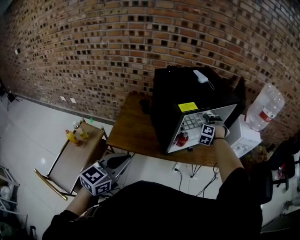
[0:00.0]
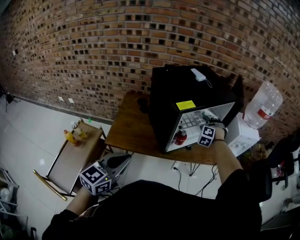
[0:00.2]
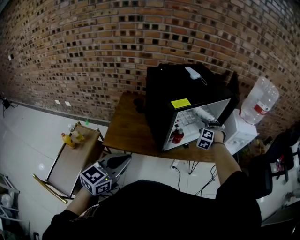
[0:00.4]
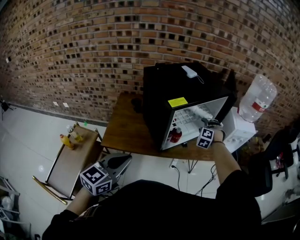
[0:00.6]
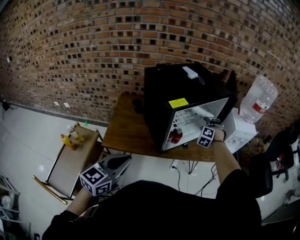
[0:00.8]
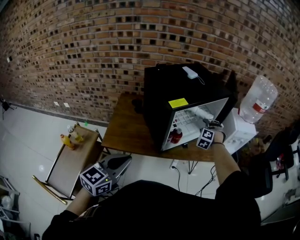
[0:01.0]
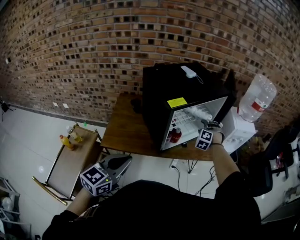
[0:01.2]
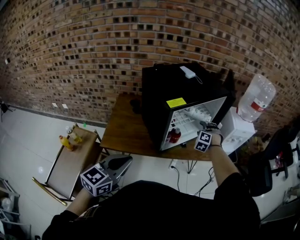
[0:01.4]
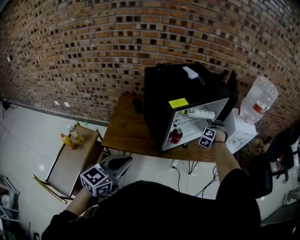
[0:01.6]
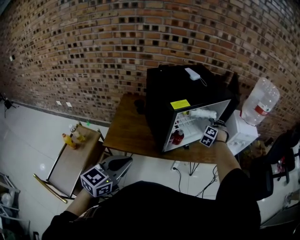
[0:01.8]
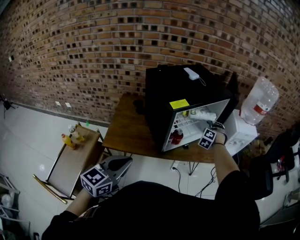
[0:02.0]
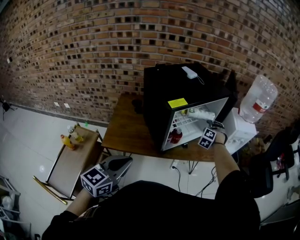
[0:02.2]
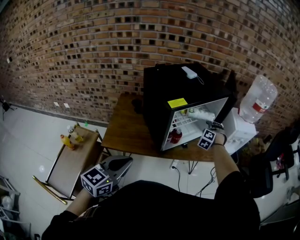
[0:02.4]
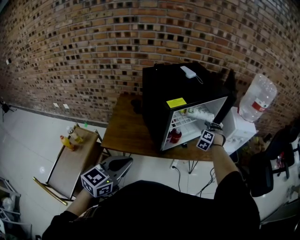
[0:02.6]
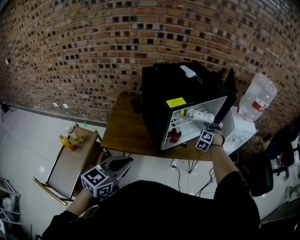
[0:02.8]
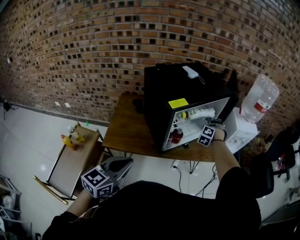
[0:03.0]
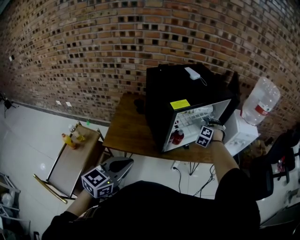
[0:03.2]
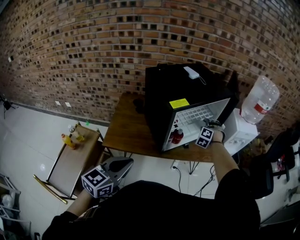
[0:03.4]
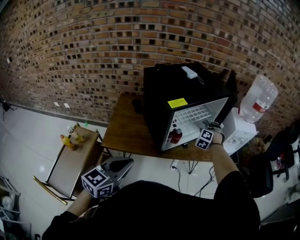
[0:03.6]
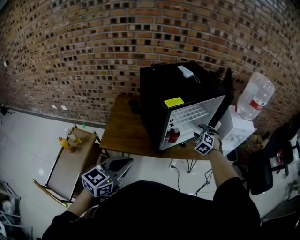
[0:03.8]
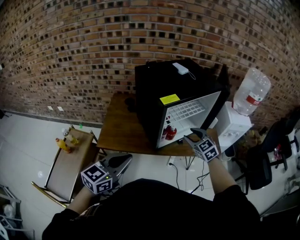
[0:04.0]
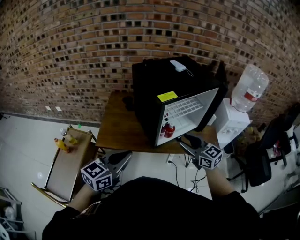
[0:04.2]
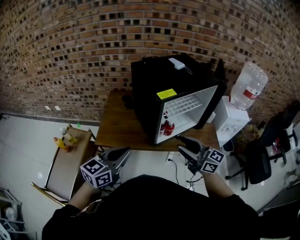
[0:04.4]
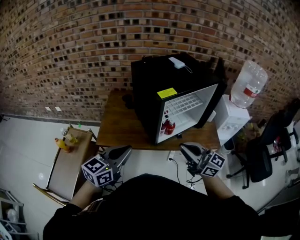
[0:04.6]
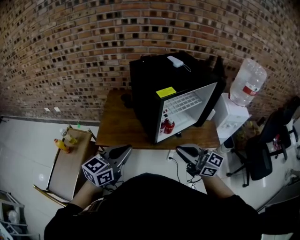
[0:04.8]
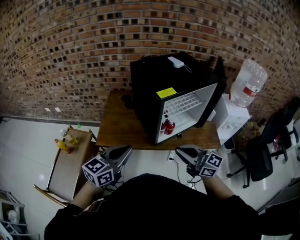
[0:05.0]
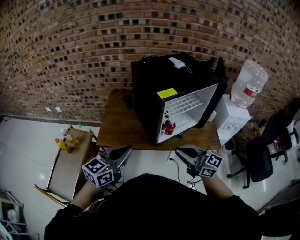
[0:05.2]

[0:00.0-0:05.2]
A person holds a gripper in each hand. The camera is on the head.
0:00.0 to 0:01.8: The right gripper moves to the right, approximately 10 cm.
0:01.8 to 0:03.4: There are only small adjustments of the grippers.
0:03.4 to 0:05.2: The right gripper moves about 35 cm, tilts its fingers roughly 40 degrees upward, and closes its fingers.

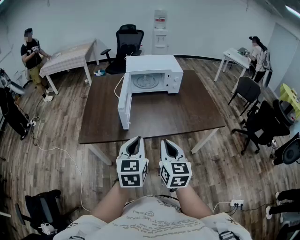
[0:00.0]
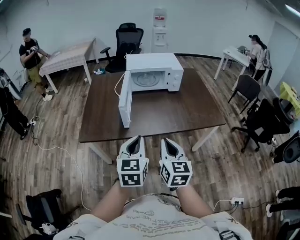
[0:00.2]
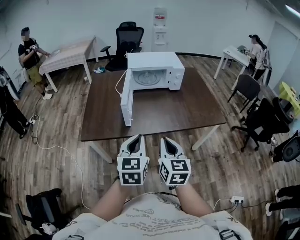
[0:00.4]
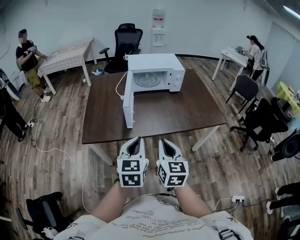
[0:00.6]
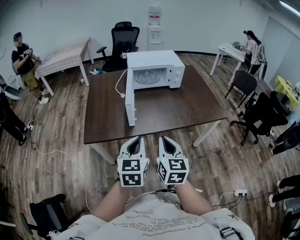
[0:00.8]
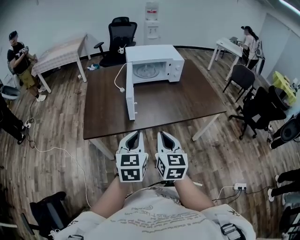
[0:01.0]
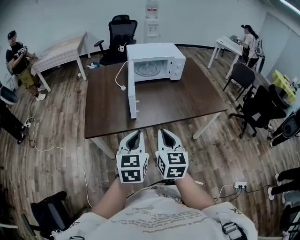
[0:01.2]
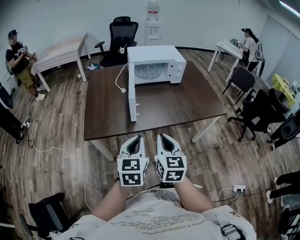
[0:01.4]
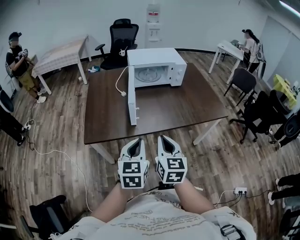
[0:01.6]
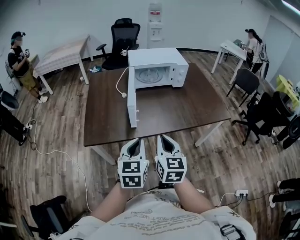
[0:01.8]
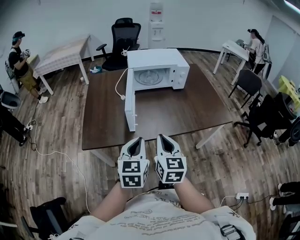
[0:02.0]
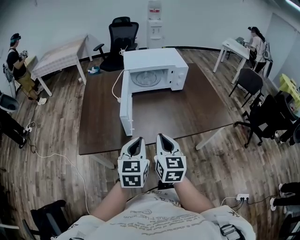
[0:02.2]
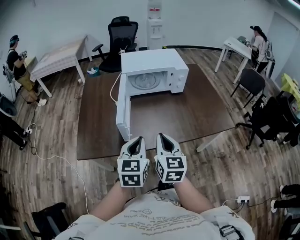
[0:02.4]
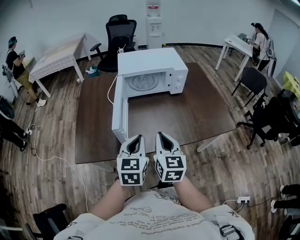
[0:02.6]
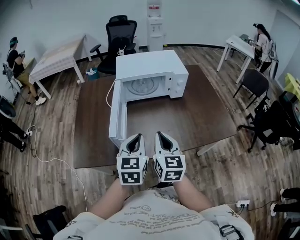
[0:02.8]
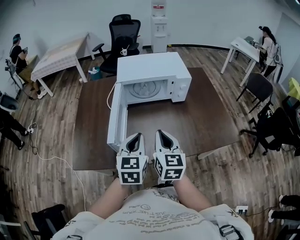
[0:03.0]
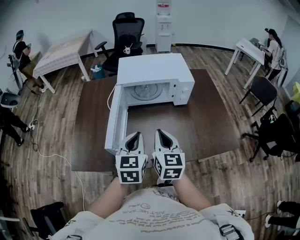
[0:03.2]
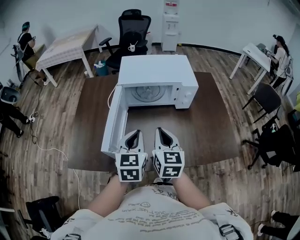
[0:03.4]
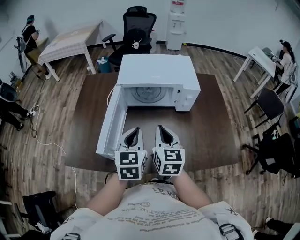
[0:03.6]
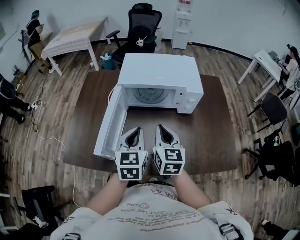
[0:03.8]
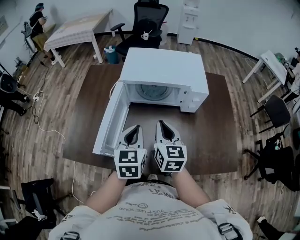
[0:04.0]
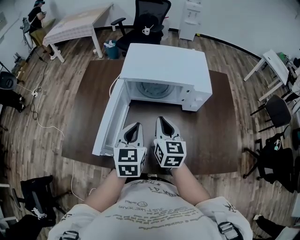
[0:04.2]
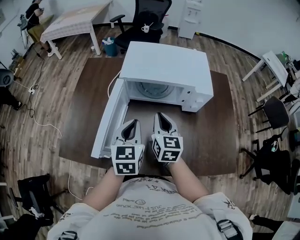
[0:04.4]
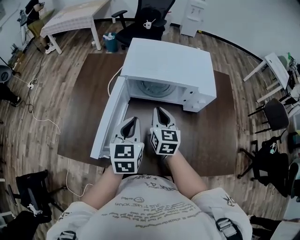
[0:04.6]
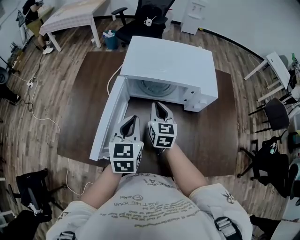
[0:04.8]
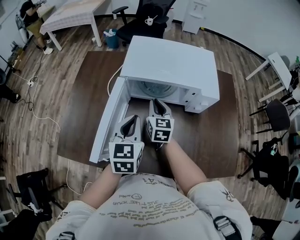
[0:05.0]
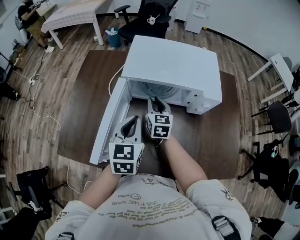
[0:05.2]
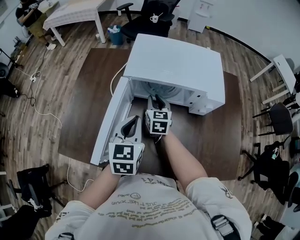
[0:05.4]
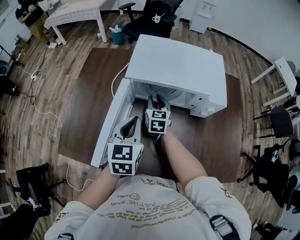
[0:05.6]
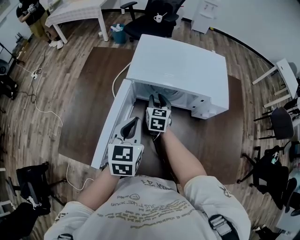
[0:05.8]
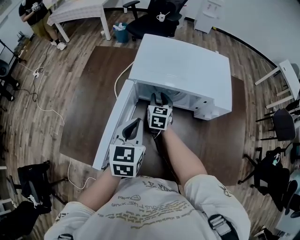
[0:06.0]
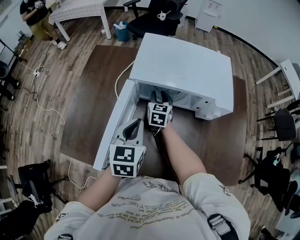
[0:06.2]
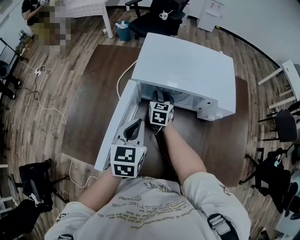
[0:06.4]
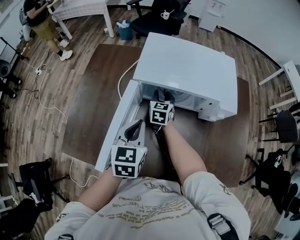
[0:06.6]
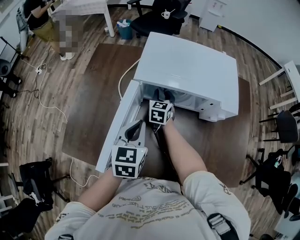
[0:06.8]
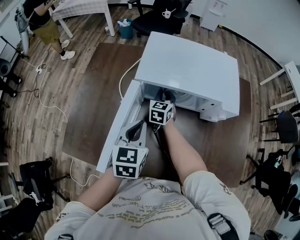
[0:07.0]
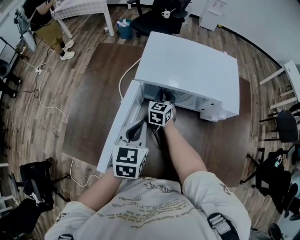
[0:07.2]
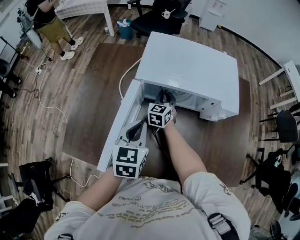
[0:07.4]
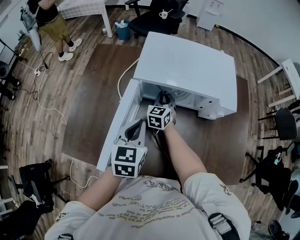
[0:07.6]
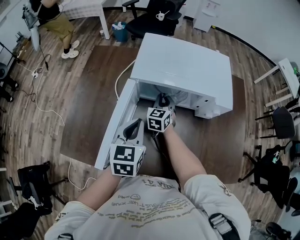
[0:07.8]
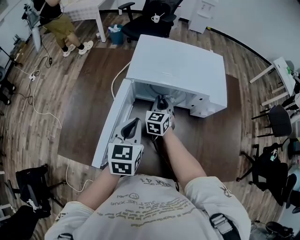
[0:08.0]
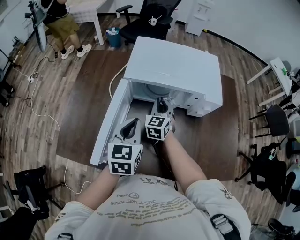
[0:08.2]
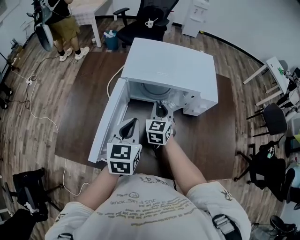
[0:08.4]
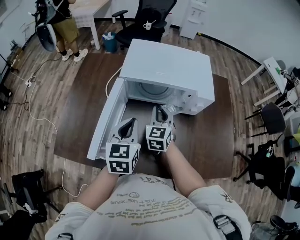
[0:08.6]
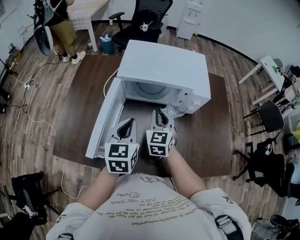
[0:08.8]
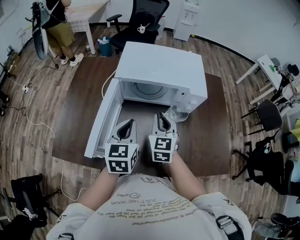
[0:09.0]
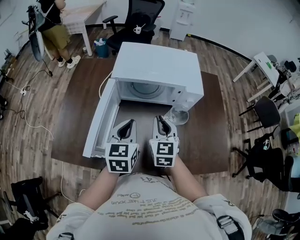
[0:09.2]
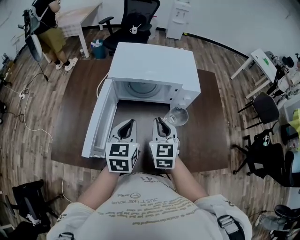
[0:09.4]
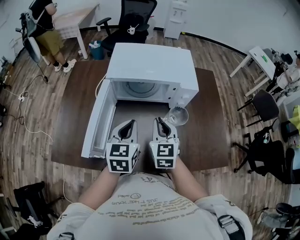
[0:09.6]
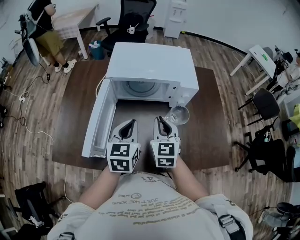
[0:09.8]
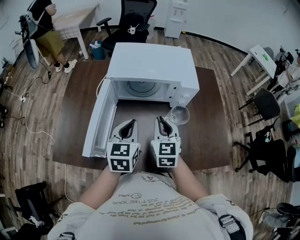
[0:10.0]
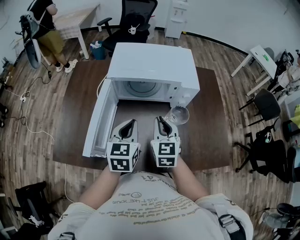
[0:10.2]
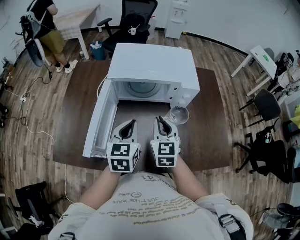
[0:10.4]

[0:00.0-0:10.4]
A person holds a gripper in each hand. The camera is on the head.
0:00.0 to 0:01.4: Both grippers travel together to the left, roughly 10 cm.
0:01.4 to 0:03.0: Both grippers move forward, some 30 cm.
0:03.0 to 0:04.4: The two grippers go approximately 20 cm forward.
0:04.4 to 0:06.0: The right gripper is displaced forward and downward by approximately 20 cm, and opens up, while the left gripper moves forward, some 5 cm.
0:06.0 to 0:07.4: The right gripper closes.
0:07.4 to 0:09.0: The left gripper heads to the right and backward, covering about 5 cm, while the right gripper is displaced backward, upward and to the right by about 25 cm.
0:09.0 to 0:10.4: The grippers move only a little.

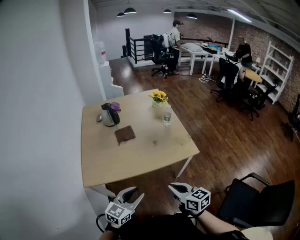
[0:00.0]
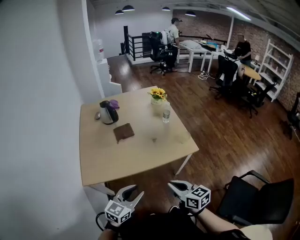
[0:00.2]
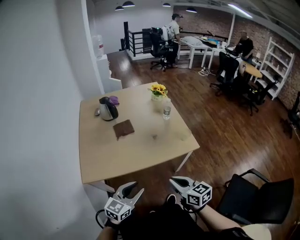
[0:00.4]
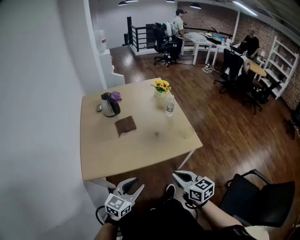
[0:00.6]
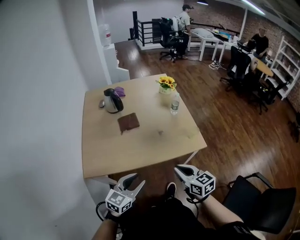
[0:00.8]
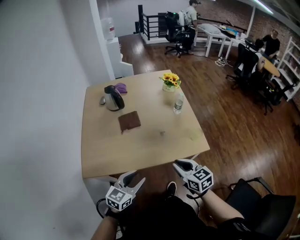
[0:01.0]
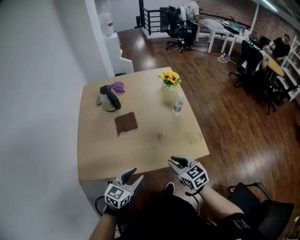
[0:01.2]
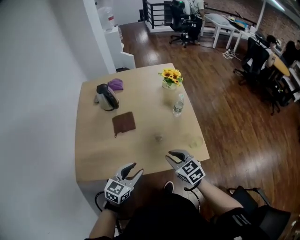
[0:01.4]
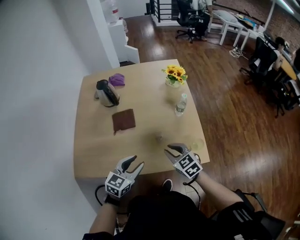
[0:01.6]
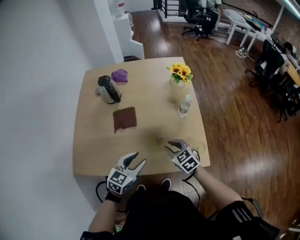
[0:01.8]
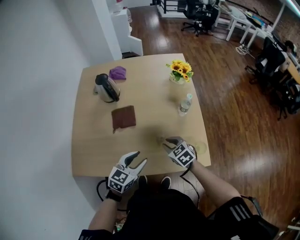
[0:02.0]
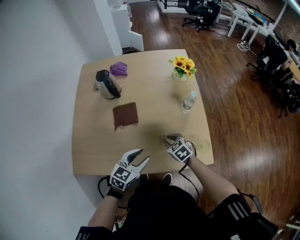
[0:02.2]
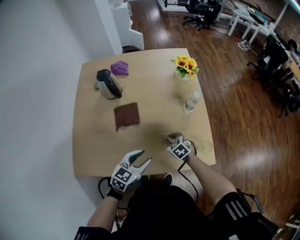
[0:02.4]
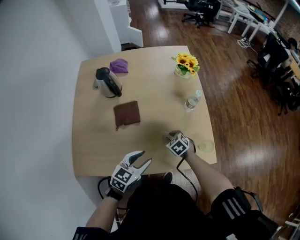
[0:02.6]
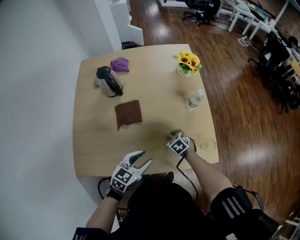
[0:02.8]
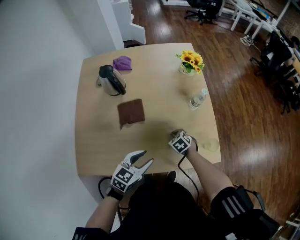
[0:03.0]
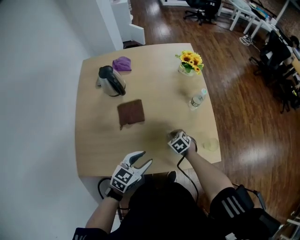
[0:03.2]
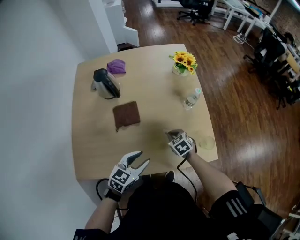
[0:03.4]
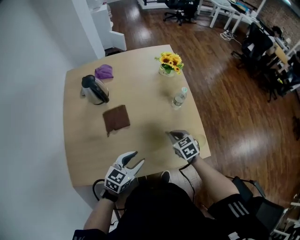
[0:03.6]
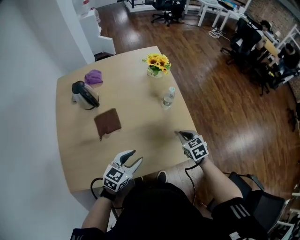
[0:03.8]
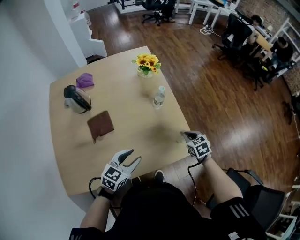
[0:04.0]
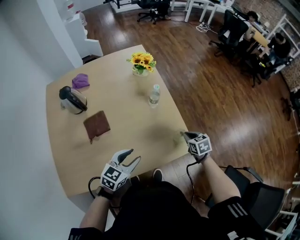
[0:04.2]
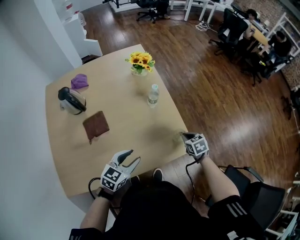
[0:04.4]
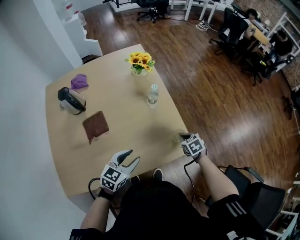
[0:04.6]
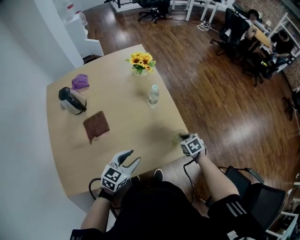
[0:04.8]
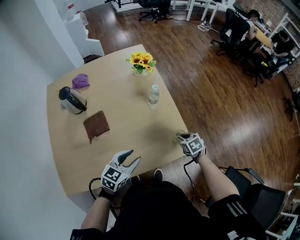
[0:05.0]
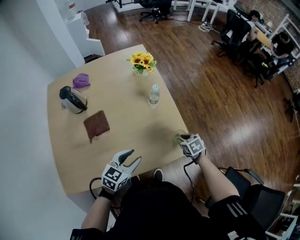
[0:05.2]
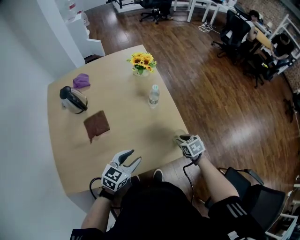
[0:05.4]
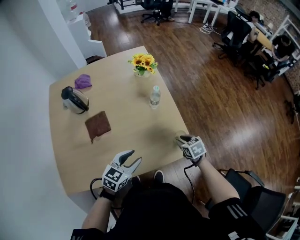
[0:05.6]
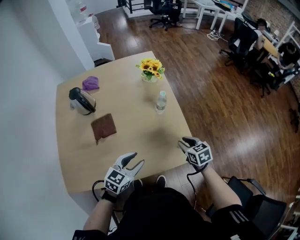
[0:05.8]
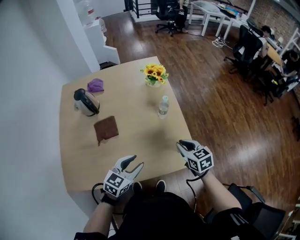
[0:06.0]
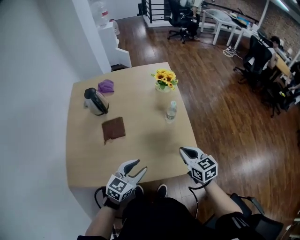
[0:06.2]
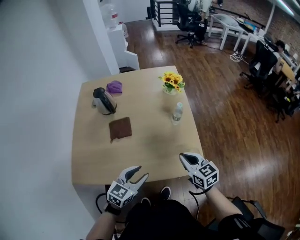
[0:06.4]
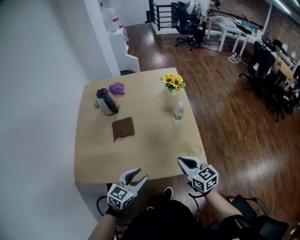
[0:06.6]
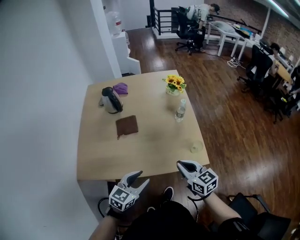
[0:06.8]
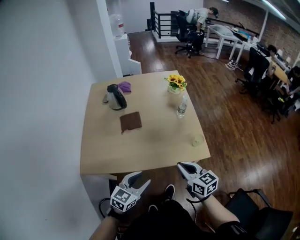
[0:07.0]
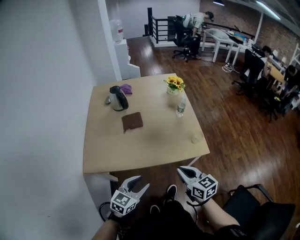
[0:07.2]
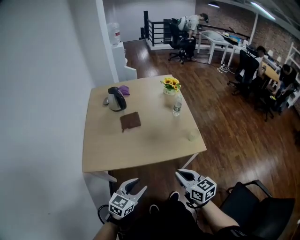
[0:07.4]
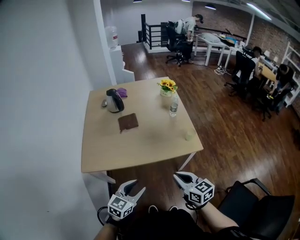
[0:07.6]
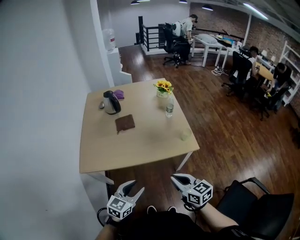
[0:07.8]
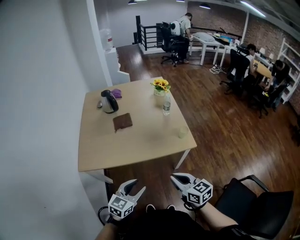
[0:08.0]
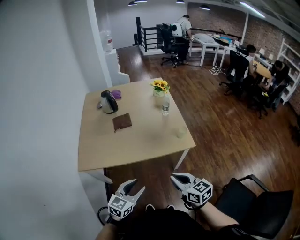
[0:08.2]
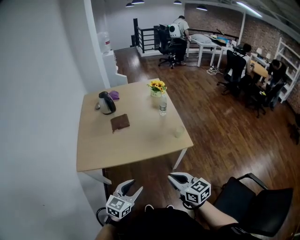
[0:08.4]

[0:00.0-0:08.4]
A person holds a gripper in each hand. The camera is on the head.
0:00.0 to 0:01.4: The grippers both shift forward by some 25 cm. The right gripper turns by approximately 30 degrees.
0:01.4 to 0:02.8: The left gripper goes some 10 cm forward and downward. The right gripper goes approximately 25 cm downward and forward, and angles its fingers downward, by approximately 30 degrees.
0:02.8 to 0:04.2: The left gripper moves to the right, approximately 10 cm. The right gripper heads to the right, covering roughly 25 cm, rotates approximately 40 degrees, and closes up.
0:04.2 to 0:05.6: The right gripper opens.
0:05.6 to 0:07.0: The right gripper moves backward, upward and to the left, about 30 cm, angles its fingers upward, by roughly 40 degrees, and closes its fingers, while the left gripper moves backward, about 20 cm.
0:07.0 to 0:08.4: The grippers both shift backward by some 20 cm.
